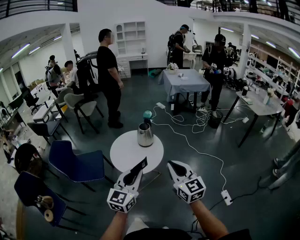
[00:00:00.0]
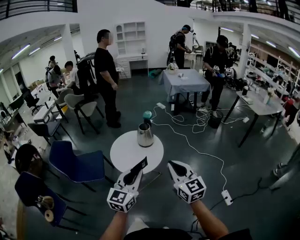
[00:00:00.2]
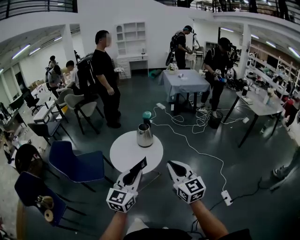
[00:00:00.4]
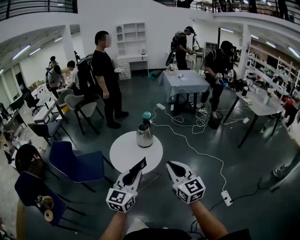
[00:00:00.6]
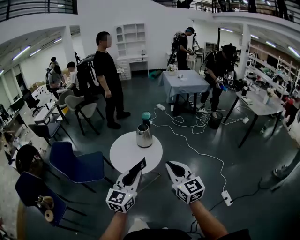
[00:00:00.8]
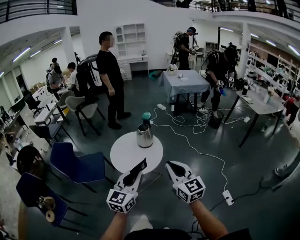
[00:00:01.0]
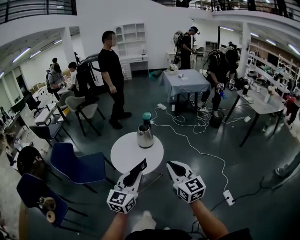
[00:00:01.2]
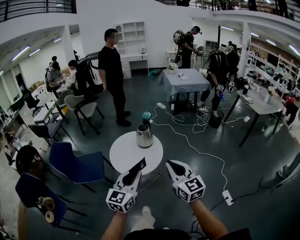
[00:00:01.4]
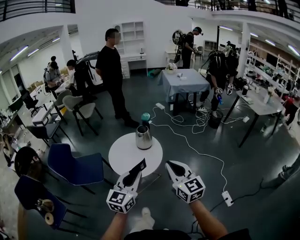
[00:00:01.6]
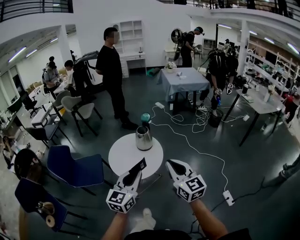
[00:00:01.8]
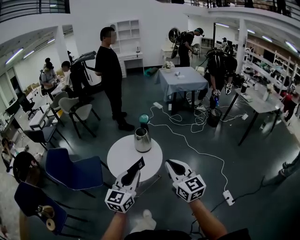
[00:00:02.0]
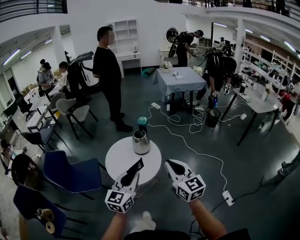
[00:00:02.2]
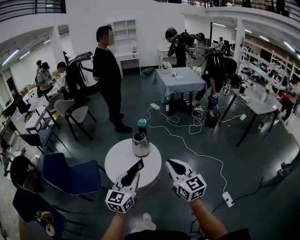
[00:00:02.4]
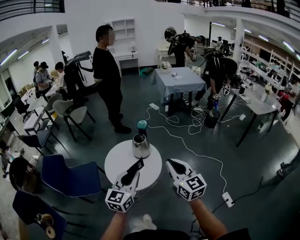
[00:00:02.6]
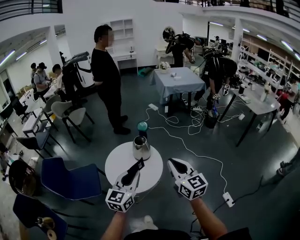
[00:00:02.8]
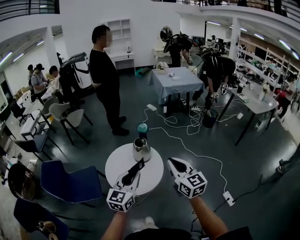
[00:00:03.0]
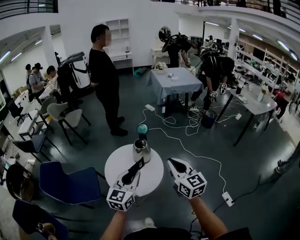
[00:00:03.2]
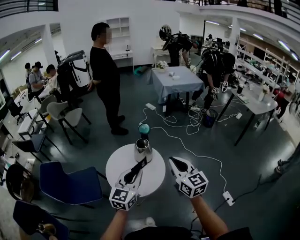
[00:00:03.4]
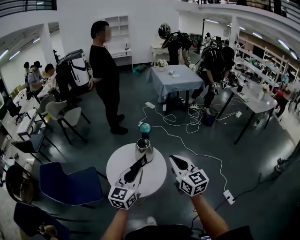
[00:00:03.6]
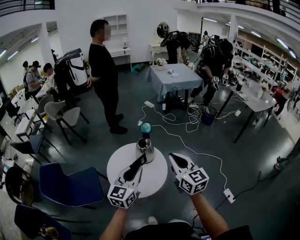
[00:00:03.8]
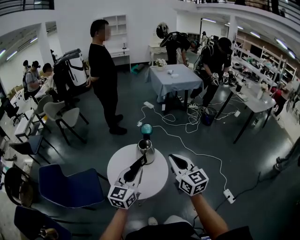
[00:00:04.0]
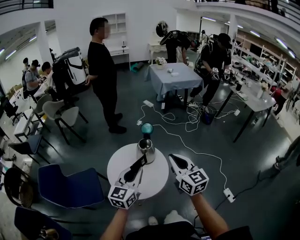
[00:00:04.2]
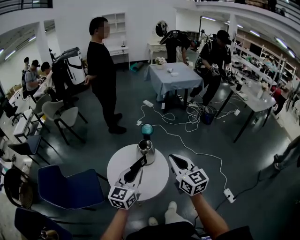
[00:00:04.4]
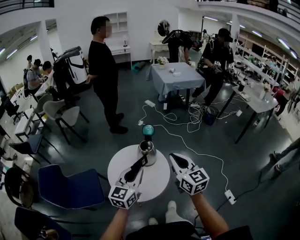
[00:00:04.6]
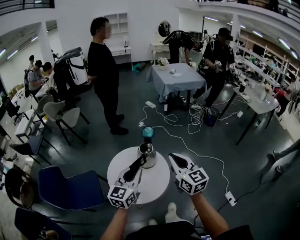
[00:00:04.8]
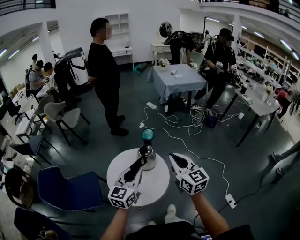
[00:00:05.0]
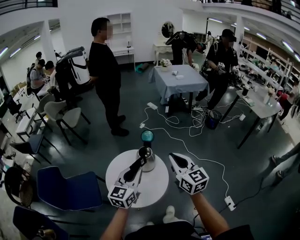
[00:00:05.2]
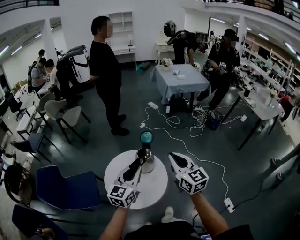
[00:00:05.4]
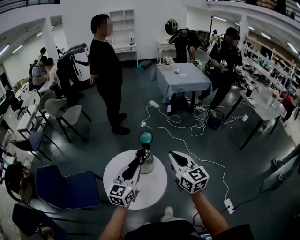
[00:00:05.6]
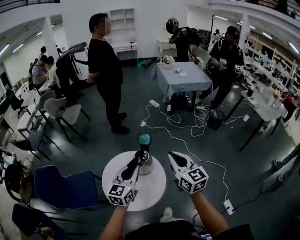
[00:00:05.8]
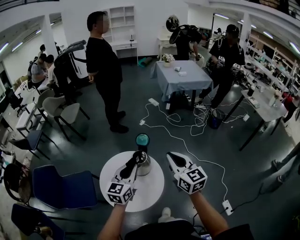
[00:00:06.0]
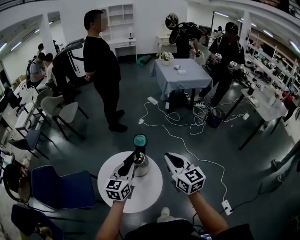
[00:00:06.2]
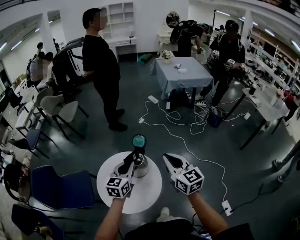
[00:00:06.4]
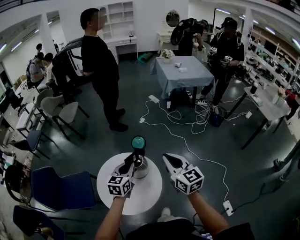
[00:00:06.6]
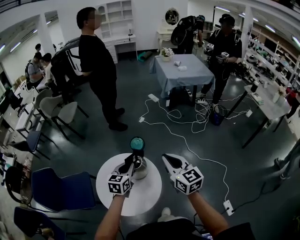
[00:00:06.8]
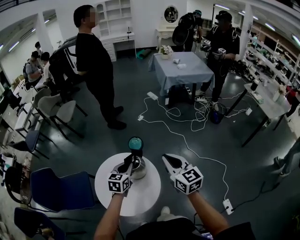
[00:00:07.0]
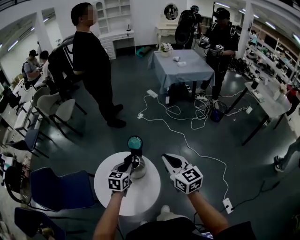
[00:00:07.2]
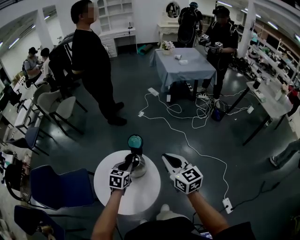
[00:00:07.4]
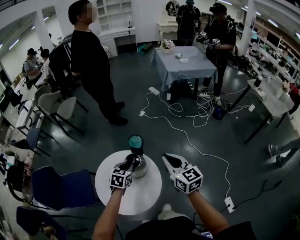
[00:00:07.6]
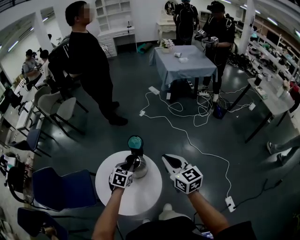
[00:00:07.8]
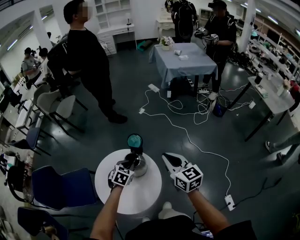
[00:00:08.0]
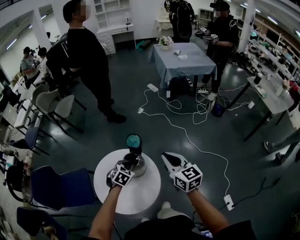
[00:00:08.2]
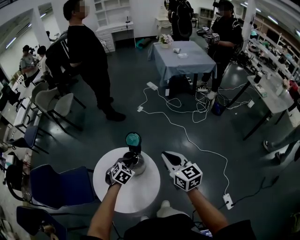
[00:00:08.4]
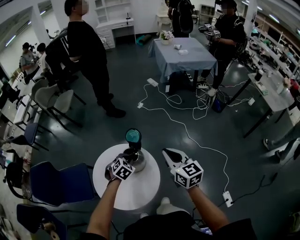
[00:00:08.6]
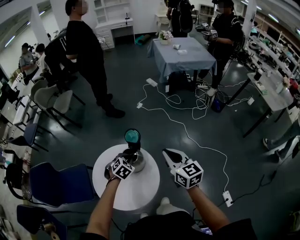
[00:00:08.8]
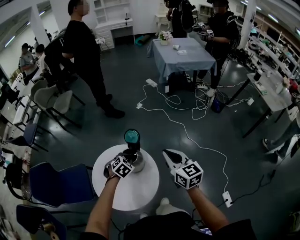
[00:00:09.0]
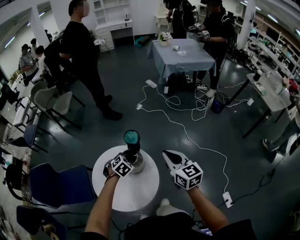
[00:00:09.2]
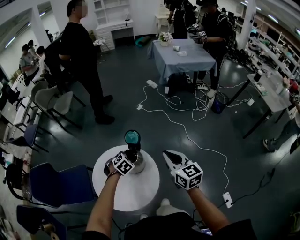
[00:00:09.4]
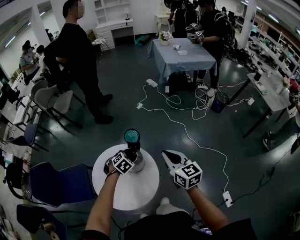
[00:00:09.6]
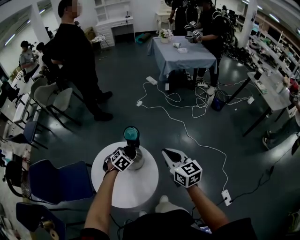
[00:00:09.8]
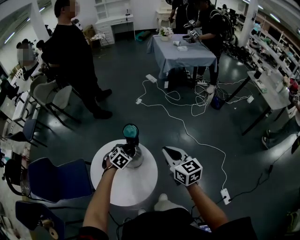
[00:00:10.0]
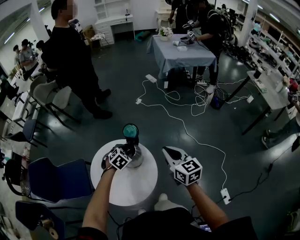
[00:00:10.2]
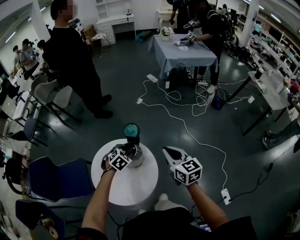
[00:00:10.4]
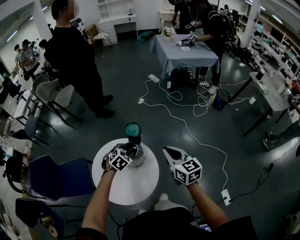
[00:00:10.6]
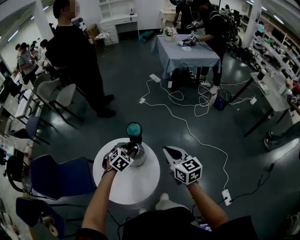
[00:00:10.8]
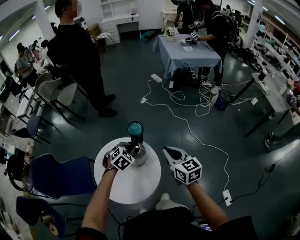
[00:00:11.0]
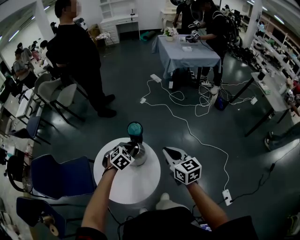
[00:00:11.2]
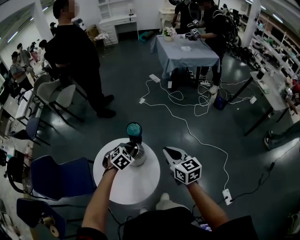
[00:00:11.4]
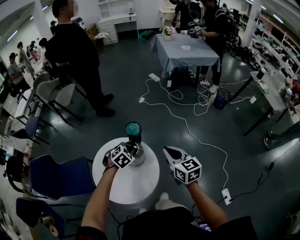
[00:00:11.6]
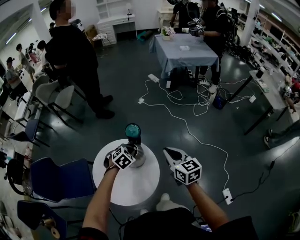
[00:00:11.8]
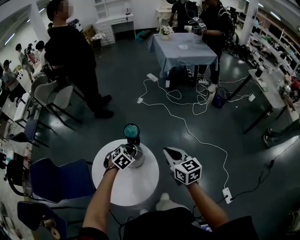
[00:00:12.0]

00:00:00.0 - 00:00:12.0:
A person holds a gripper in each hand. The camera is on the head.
00:00:00.0 - 00:00:01.6: There are only small adjustments of the grippers.
00:00:01.6 - 00:00:03.0: Both grippers travel together forward, roughly 20 cm.
00:00:03.0 - 00:00:04.4: Both grippers move forward and to the left, some 15 cm.
00:00:04.4 - 00:00:06.0: The right gripper shifts roughly 20 cm forward and to the right. Meanwhile the left gripper is displaced forward by some 15 cm.
00:00:06.0 - 00:00:07.6: The right gripper moves forward, downward and to the right, approximately 15 cm. The left gripper travels downward and forward by about 20 cm, and angles its fingers downward, by approximately 40 degrees.
00:00:07.6 - 00:00:09.0: The left gripper goes about 5 cm downward, and rotates roughly 30 degrees.
00:00:09.0 - 00:00:10.4: The left gripper opens its fingers.
00:00:10.4 - 00:00:12.0: The left gripper closes.

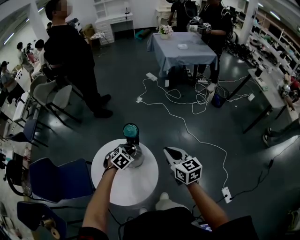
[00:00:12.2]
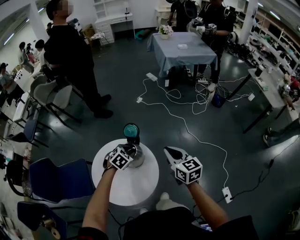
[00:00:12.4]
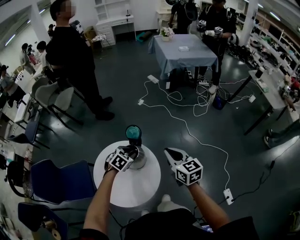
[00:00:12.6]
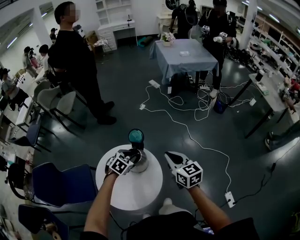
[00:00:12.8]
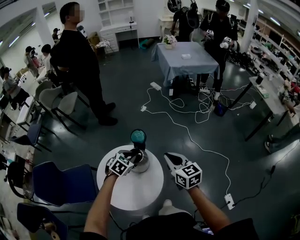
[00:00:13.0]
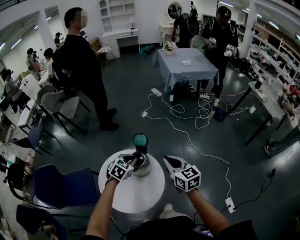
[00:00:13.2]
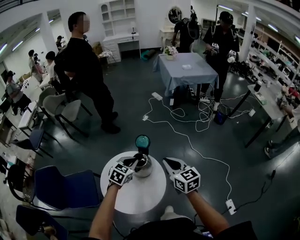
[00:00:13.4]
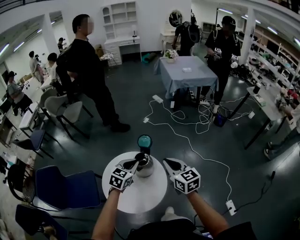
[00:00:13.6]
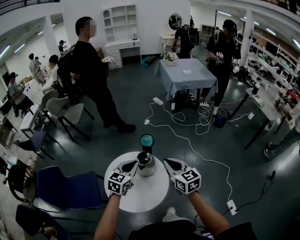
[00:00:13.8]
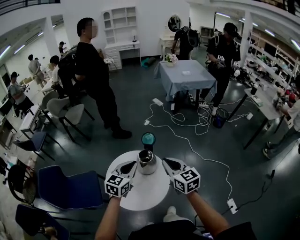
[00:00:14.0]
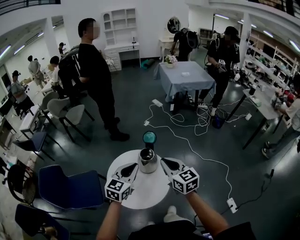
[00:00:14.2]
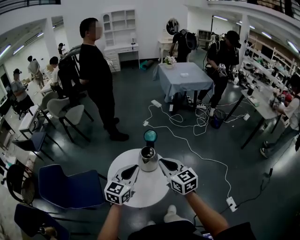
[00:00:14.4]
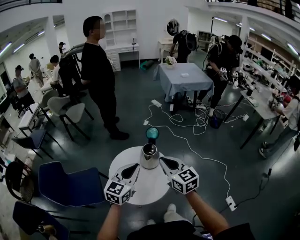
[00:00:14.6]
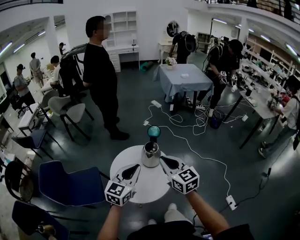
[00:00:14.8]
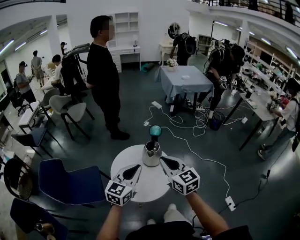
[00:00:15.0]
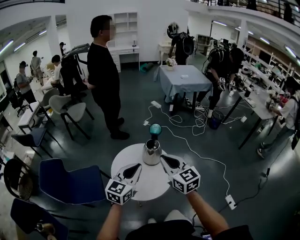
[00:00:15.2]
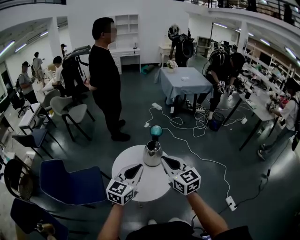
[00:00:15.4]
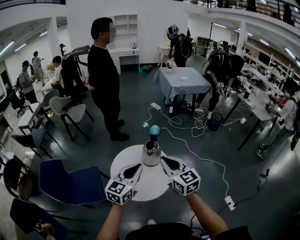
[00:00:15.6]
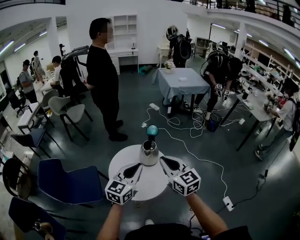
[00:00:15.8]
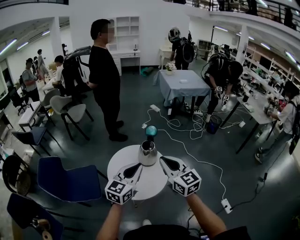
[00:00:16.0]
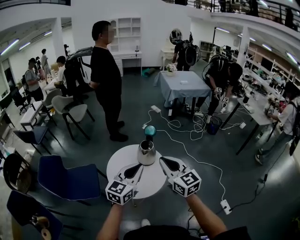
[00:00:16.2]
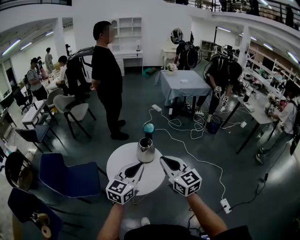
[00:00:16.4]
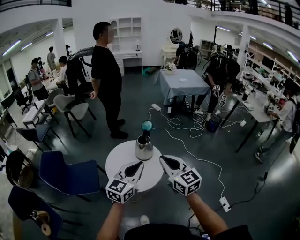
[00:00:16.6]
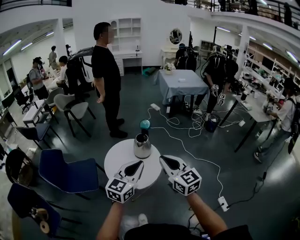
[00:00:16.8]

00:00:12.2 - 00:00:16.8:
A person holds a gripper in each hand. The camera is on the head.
00:00:12.2 - 00:00:13.8: The left gripper is displaced upward and backward by approximately 25 cm, and points its fingers about 40 degrees further upward; the right gripper shifts roughly 15 cm backward, to the left and upward.
00:00:13.8 - 00:00:15.2: Both grippers move backward and to the left, approximately 20 cm.
00:00:15.2 - 00:00:16.8: Both grippers travel together backward and to the right, about 20 cm.

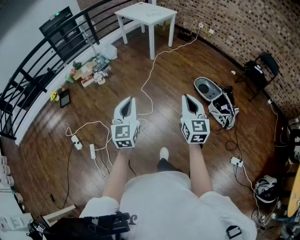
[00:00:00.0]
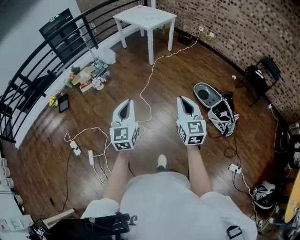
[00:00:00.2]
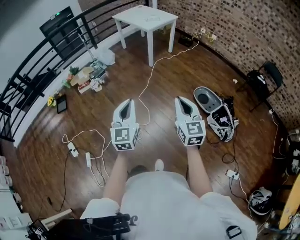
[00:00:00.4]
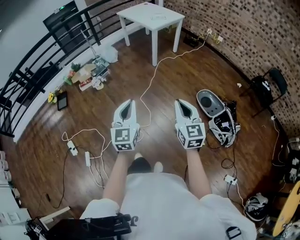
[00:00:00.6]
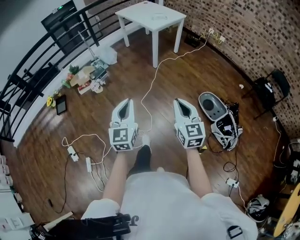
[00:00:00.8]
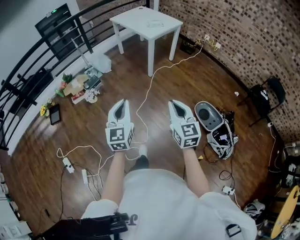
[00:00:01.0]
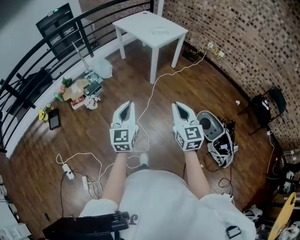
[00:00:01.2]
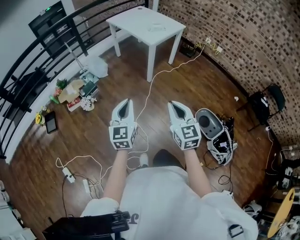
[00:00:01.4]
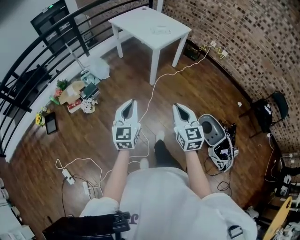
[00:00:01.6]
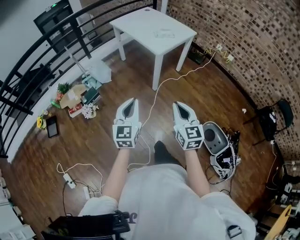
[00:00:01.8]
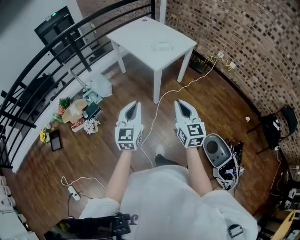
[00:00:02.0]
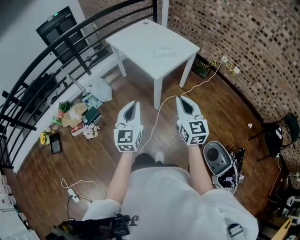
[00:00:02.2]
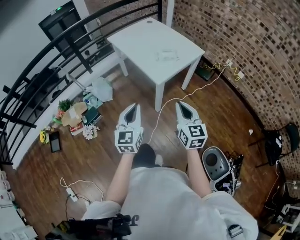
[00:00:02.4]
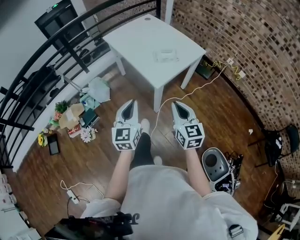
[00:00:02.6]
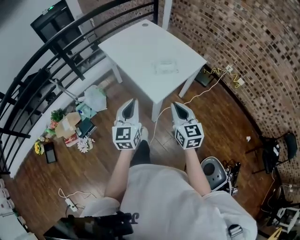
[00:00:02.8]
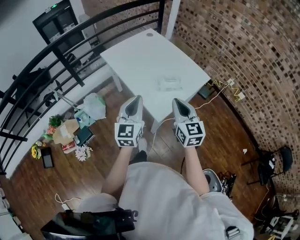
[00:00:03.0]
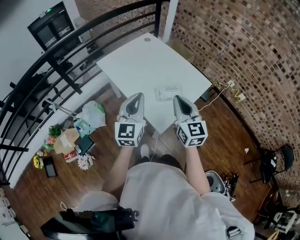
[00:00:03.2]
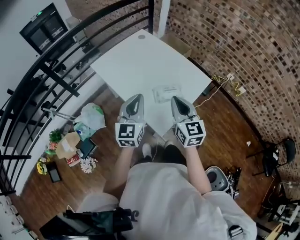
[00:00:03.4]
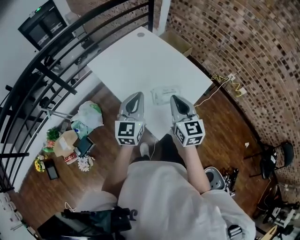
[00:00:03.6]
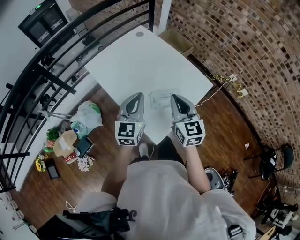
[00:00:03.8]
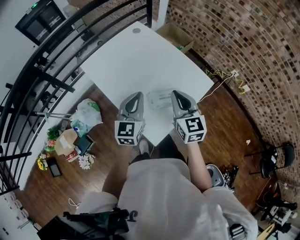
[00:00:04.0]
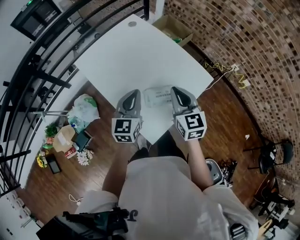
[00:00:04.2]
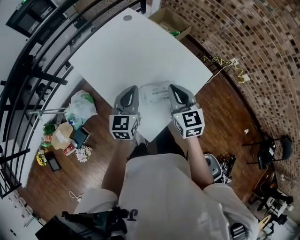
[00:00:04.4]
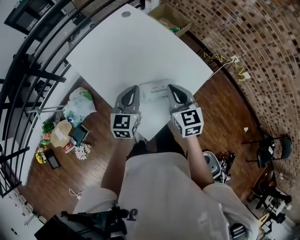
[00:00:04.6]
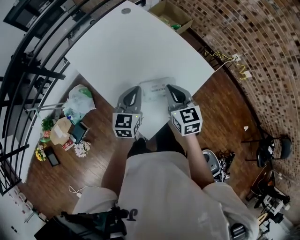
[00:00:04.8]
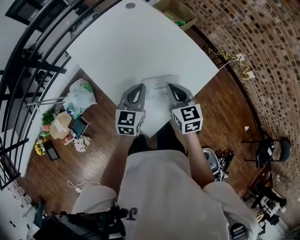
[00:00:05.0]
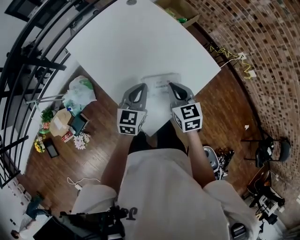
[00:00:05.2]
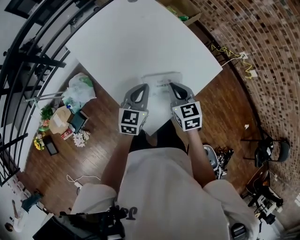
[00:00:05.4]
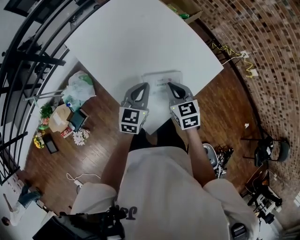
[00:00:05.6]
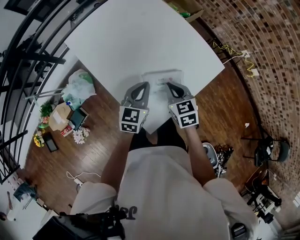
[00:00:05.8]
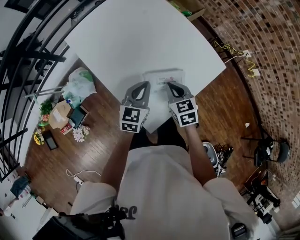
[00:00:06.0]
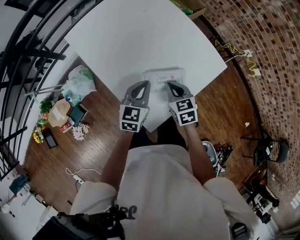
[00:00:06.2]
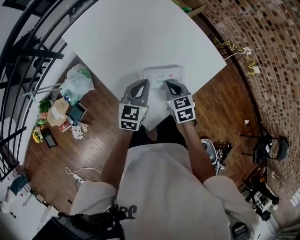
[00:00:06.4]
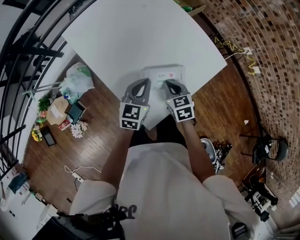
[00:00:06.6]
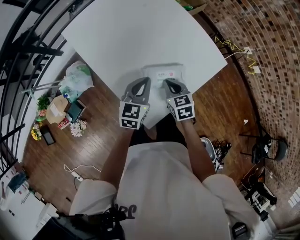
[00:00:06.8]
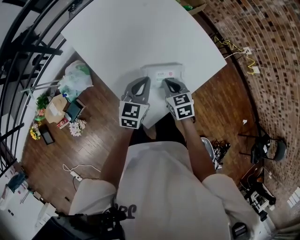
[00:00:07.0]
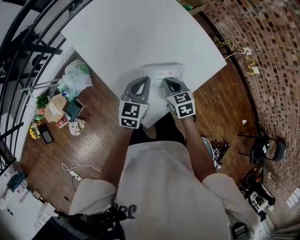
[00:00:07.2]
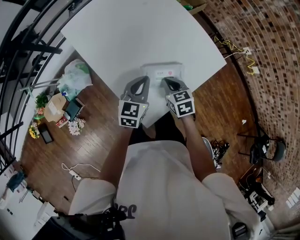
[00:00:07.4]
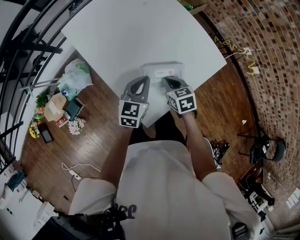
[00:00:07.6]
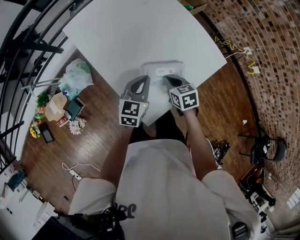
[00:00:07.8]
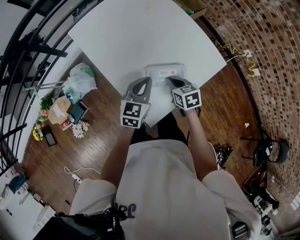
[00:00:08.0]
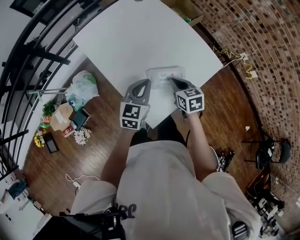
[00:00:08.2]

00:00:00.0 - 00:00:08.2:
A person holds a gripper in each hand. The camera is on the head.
00:00:00.0 - 00:00:01.6: The two grippers travel together, forward, roughly 60 cm.
00:00:01.6 - 00:00:03.2: The pair of grippers is taken forward, approximately 80 cm.
00:00:03.2 - 00:00:05.0: The left gripper goes about 25 cm downward, forward and to the right, and rotates approximately 20 degrees. The right gripper goes approximately 25 cm forward and downward, and turns by roughly 20 degrees.
00:00:05.0 - 00:00:06.6: The right gripper goes roughly 15 cm downward. The left gripper heads downward, covering roughly 5 cm.
00:00:06.6 - 00:00:08.2: The left gripper goes approximately 5 cm upward.
